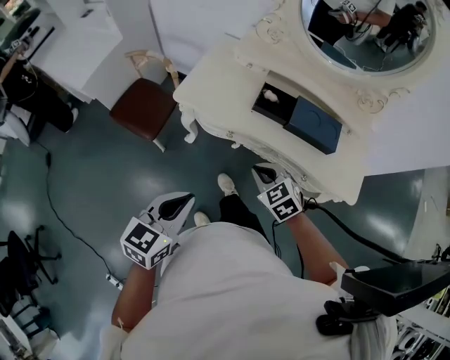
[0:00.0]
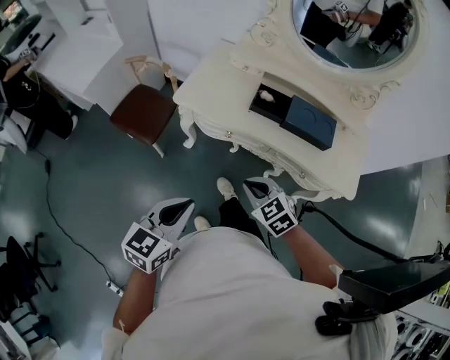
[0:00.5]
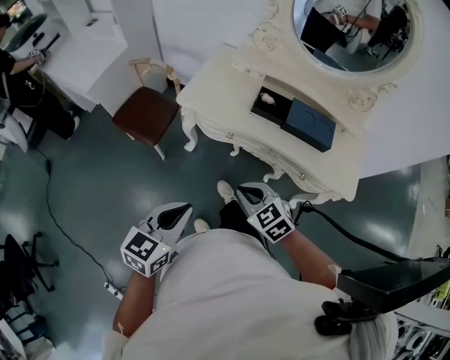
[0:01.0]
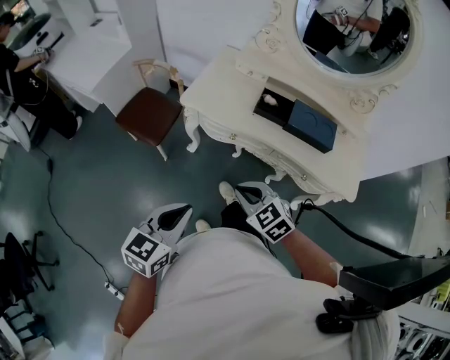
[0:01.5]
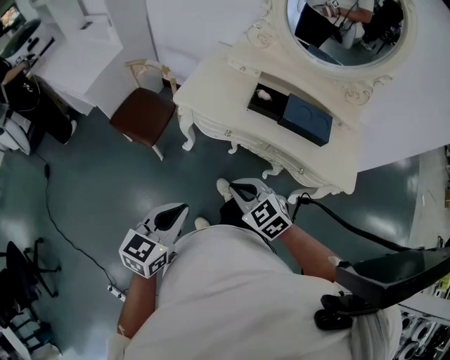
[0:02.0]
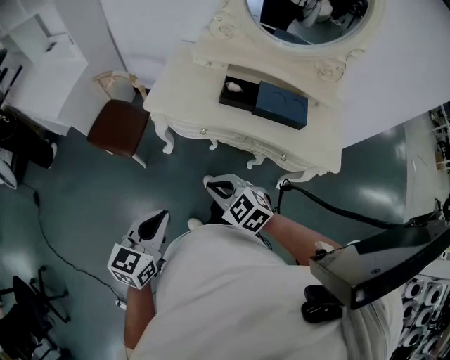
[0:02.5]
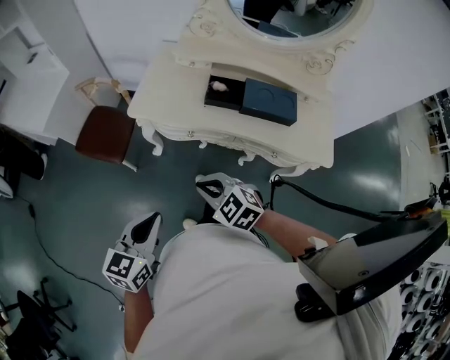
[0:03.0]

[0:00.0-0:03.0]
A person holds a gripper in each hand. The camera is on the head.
0:00.0 to 0:01.5: The left gripper goes approximately 10 cm backward; the right gripper travels backward and to the left by some 15 cm.
0:01.5 to 0:03.0: There are only small adjustments of the grippers.

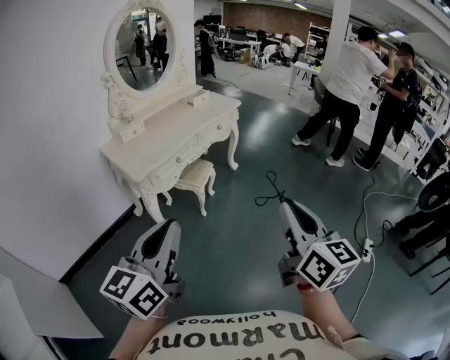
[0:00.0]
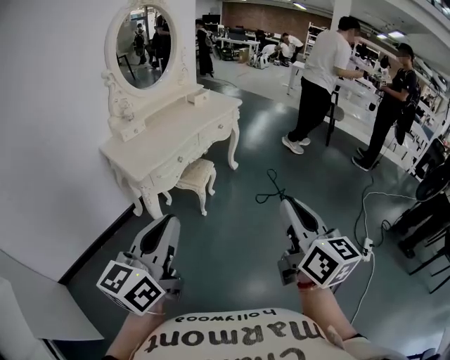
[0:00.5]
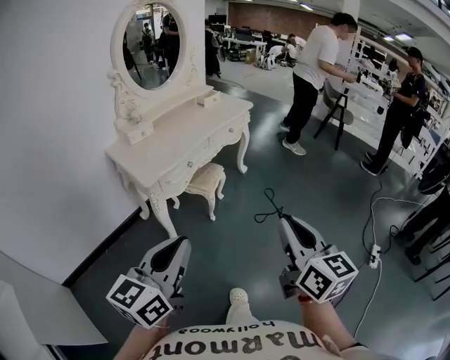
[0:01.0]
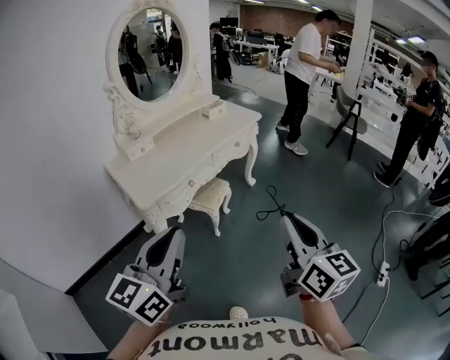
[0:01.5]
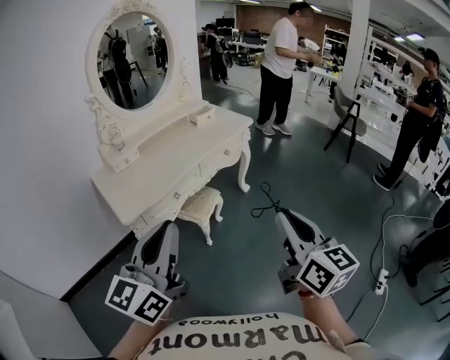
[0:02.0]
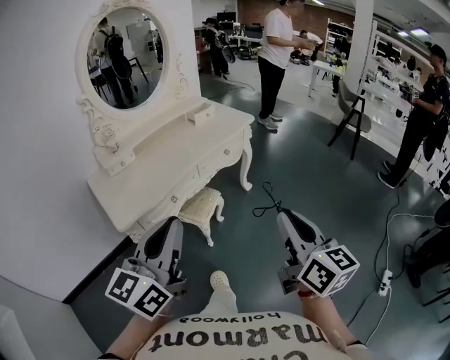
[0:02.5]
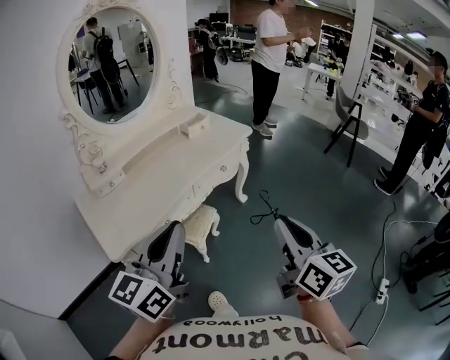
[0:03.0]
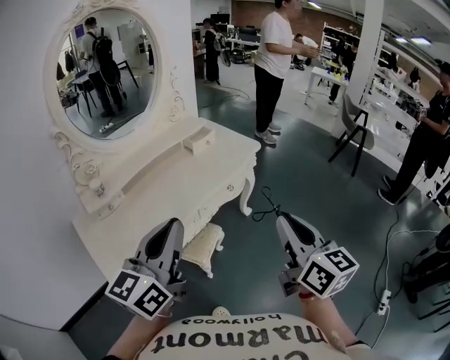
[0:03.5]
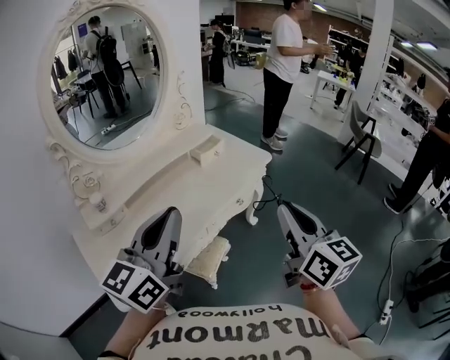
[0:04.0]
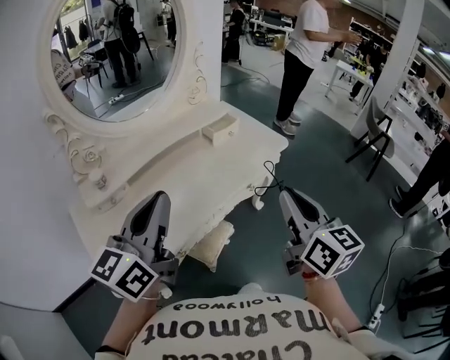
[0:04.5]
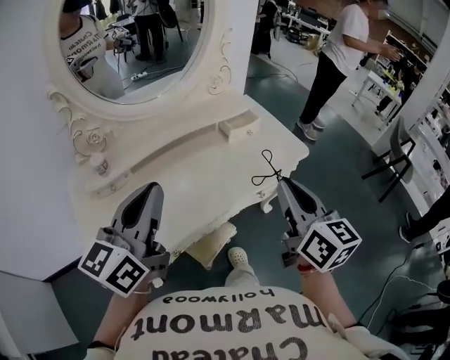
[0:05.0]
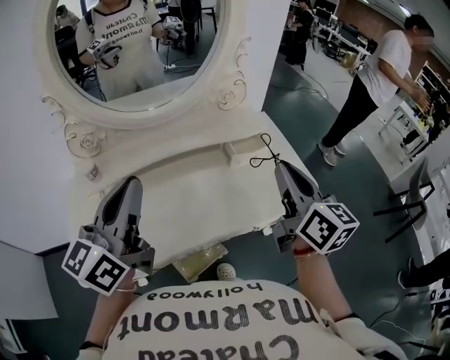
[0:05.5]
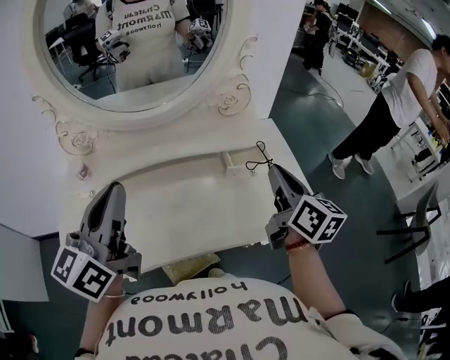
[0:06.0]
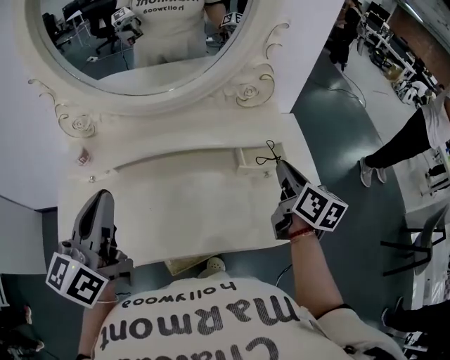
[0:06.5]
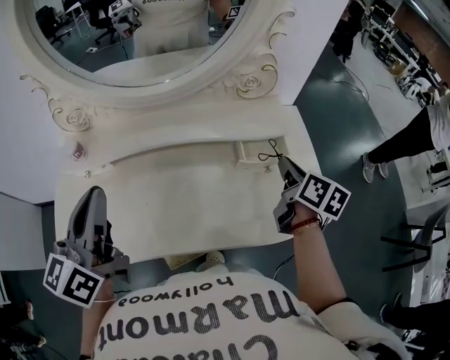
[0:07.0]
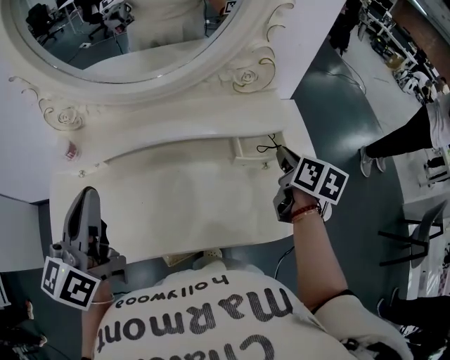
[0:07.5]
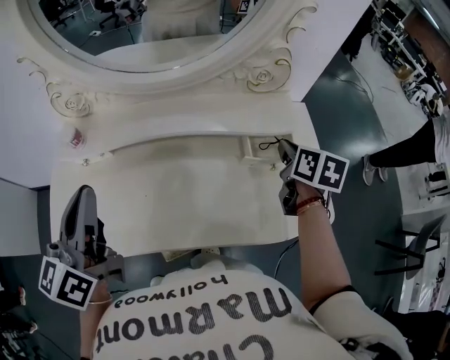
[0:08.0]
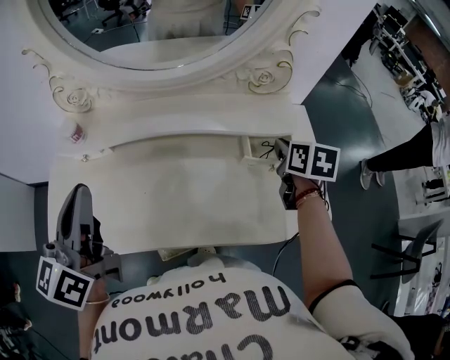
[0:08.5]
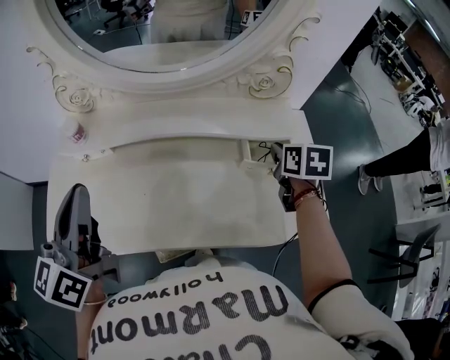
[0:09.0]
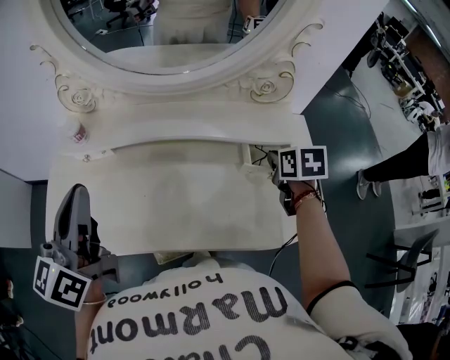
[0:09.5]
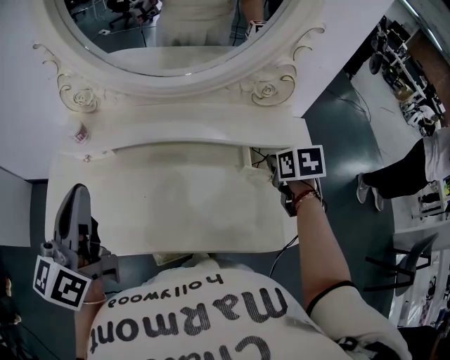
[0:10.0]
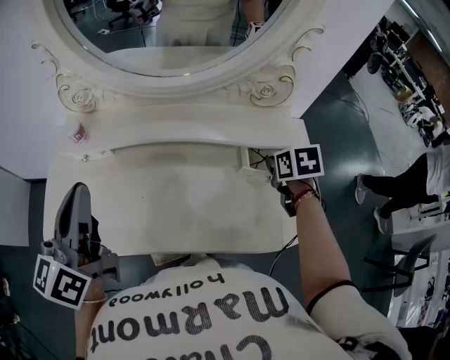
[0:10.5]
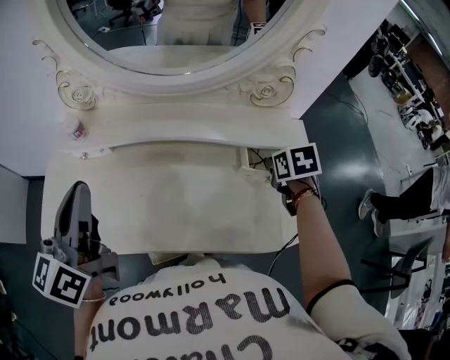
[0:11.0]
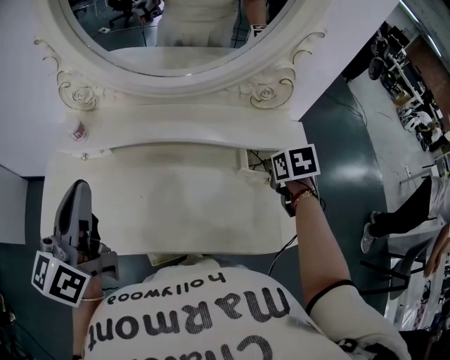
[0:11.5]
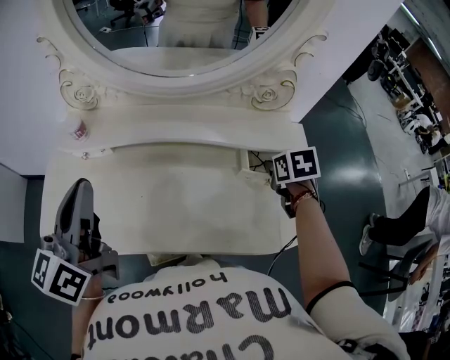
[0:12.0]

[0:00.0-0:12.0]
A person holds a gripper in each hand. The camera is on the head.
0:00.0 to 0:02.0: The two grippers go about 25 cm forward.
0:02.0 to 0:04.0: Both grippers move forward, about 40 cm.
0:04.0 to 0:06.0: The left gripper shifts by some 20 cm, and swivels about 40 degrees. Meanwhile the right gripper changes place by approximately 40 cm, and turns by approximately 30 degrees.
0:06.0 to 0:08.0: The right gripper is displaced forward and downward by some 15 cm, and points its fingers roughly 30 degrees further downward. Meanwhile the left gripper heads to the left and downward, covering some 10 cm.
0:08.0 to 0:10.0: The right gripper shifts by roughly 5 cm, and turns by about 30 degrees.
0:10.0 to 0:12.0: There are only small adjustments of the grippers.

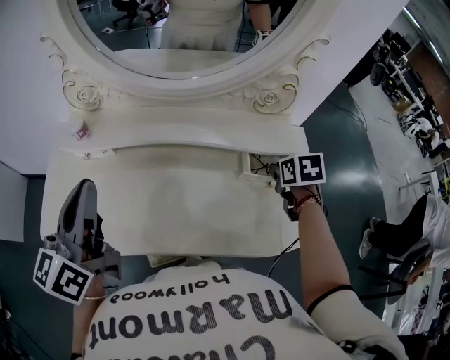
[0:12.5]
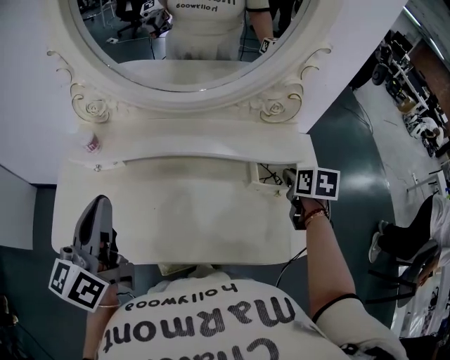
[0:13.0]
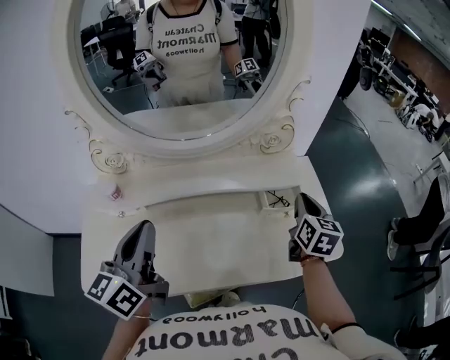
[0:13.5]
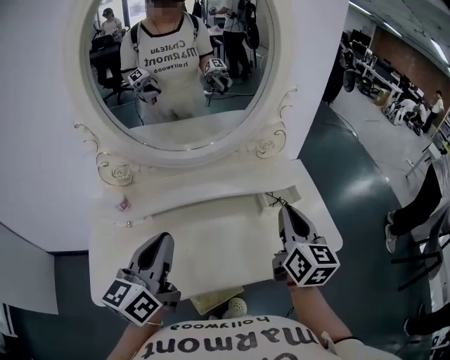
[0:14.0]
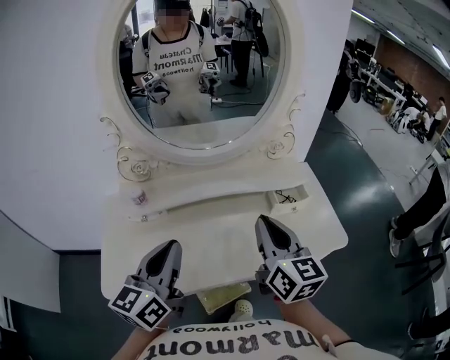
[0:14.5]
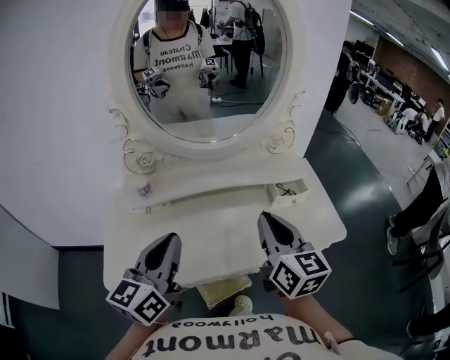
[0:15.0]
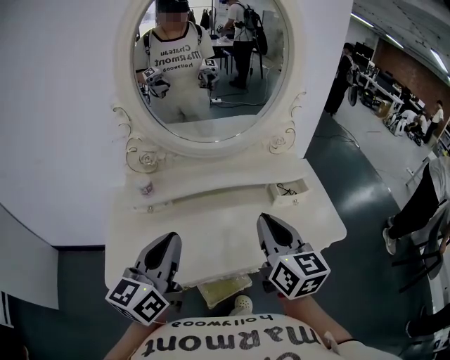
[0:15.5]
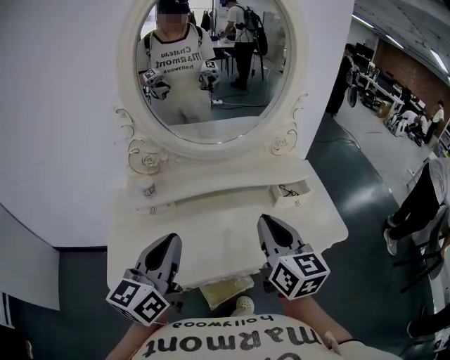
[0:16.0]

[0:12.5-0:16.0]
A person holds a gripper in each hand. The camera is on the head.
0:12.5 to 0:14.5: The right gripper goes approximately 35 cm upward, backward and to the left, and angles its fingers upward, by about 60 degrees; the left gripper moves about 5 cm.
0:14.5 to 0:16.0: The grippers move only a little.

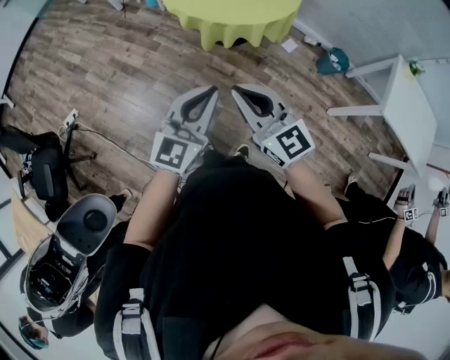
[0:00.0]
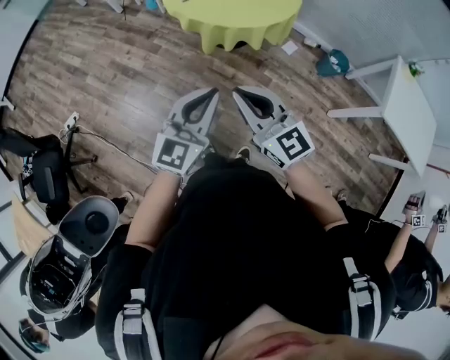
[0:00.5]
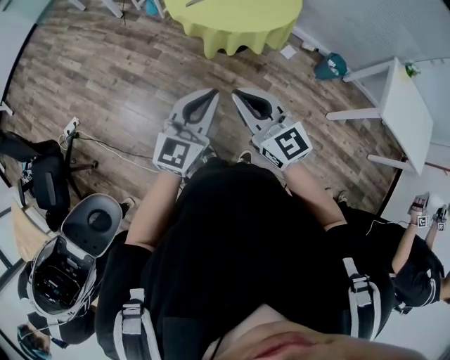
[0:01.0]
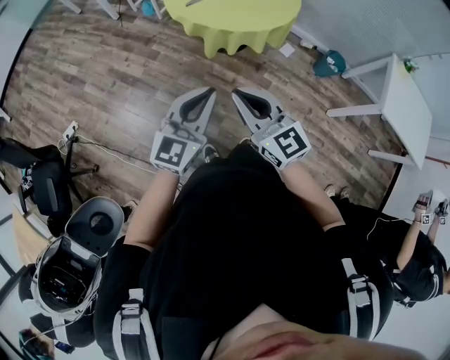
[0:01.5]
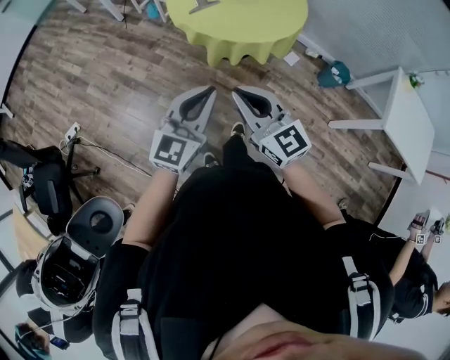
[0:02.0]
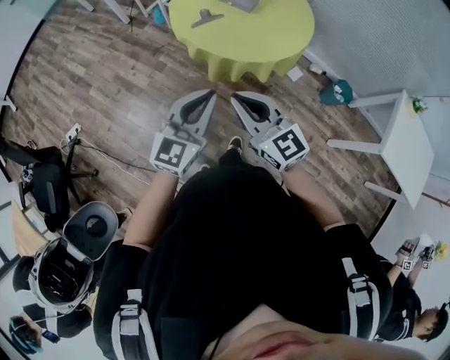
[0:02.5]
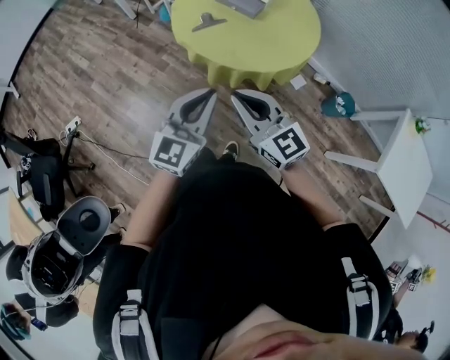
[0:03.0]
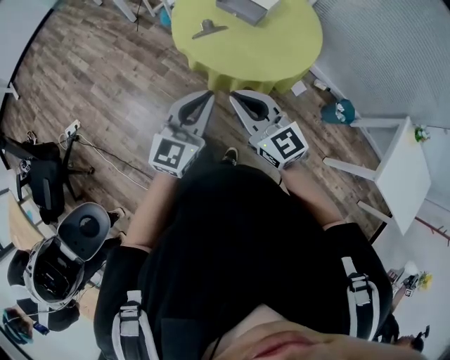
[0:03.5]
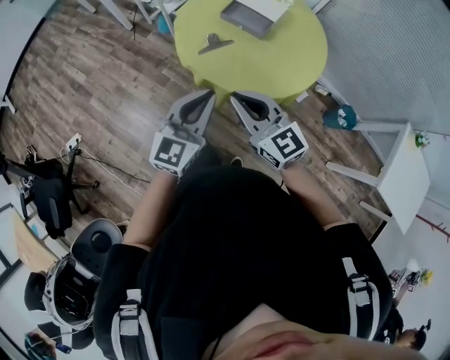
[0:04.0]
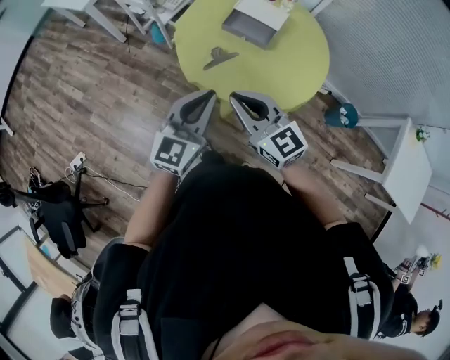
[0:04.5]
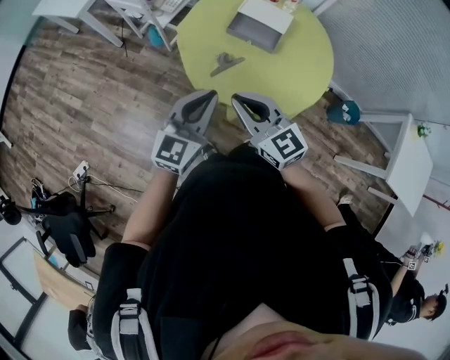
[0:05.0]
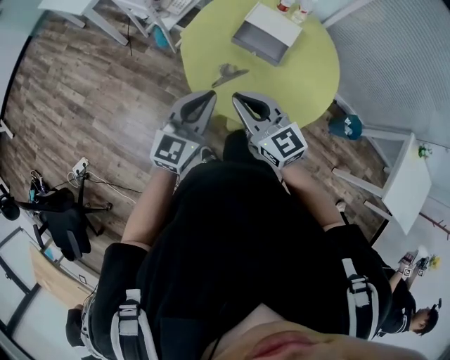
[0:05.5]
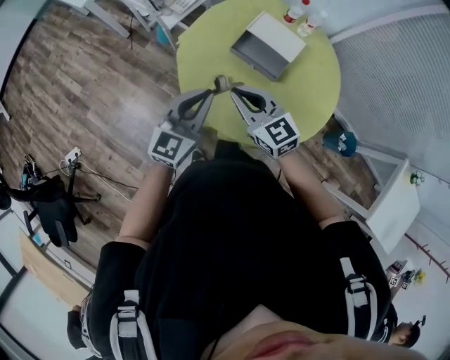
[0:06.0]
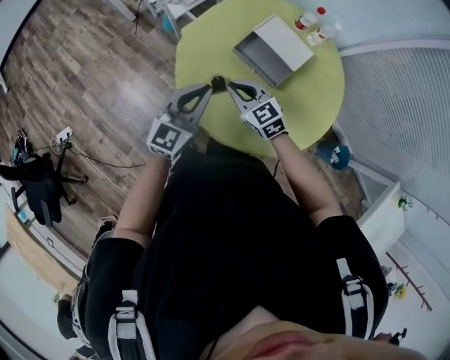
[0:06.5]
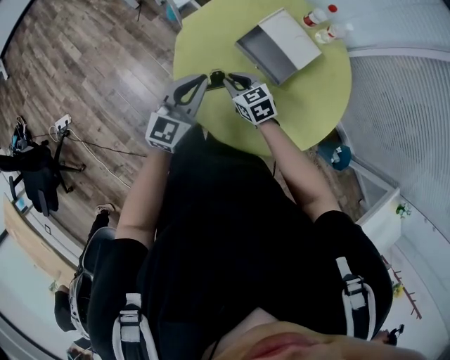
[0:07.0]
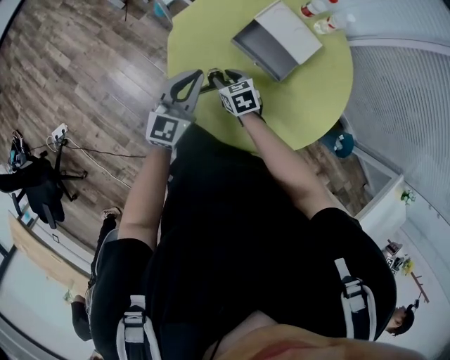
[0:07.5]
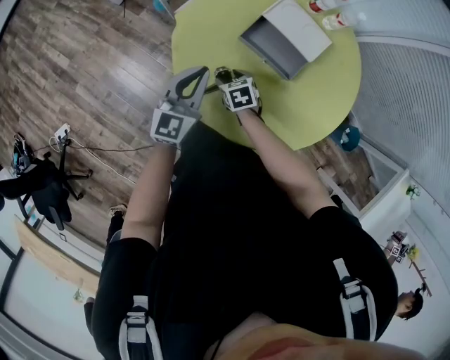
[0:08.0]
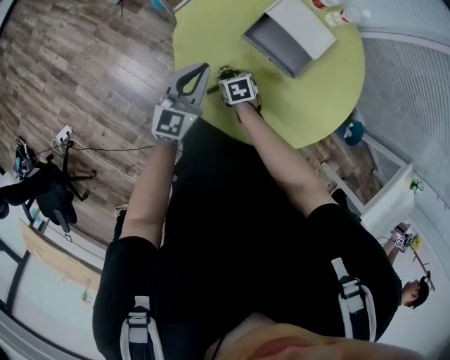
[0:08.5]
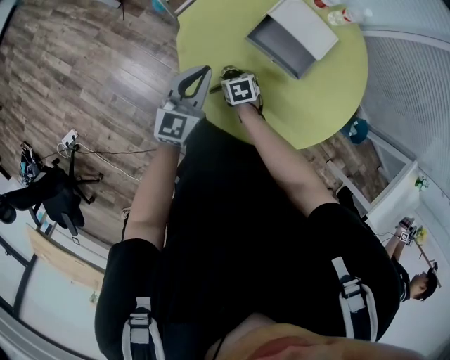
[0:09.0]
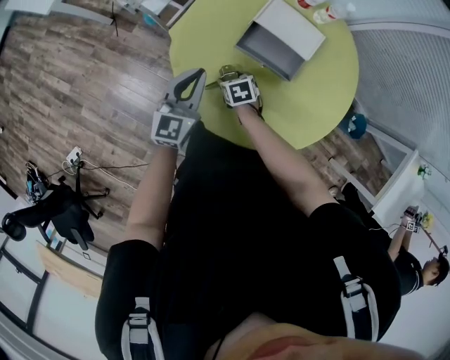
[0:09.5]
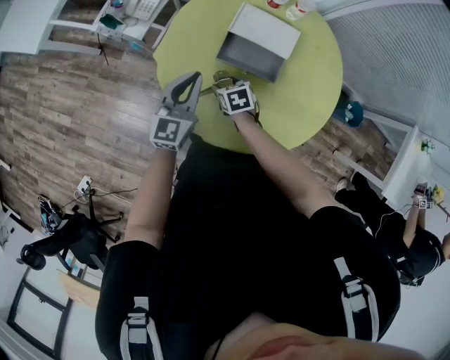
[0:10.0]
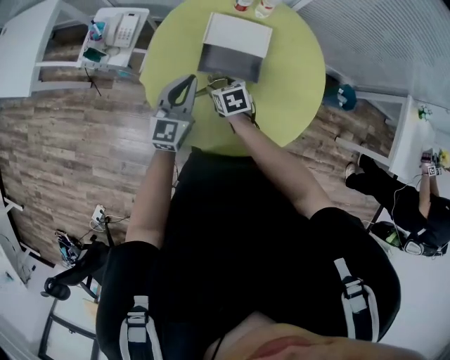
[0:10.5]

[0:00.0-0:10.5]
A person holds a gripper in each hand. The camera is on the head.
0:00.0 to 0:02.0: The two grippers go some 10 cm forward and to the left.
0:02.0 to 0:04.0: The grippers both shift forward by approximately 30 cm.
0:04.0 to 0:06.5: The right gripper is displaced forward and downward by roughly 40 cm, and turns by about 30 degrees; the left gripper moves forward, about 30 cm.
0:06.5 to 0:08.5: The right gripper moves downward, roughly 25 cm, points its fingers approximately 40 degrees further downward, and opens its fingers; the left gripper goes approximately 15 cm downward and forward.
0:08.5 to 0:10.5: The right gripper is displaced upward by some 15 cm, and changes its angle by roughly 30 degrees; the left gripper ends up some 10 cm from where it was.
